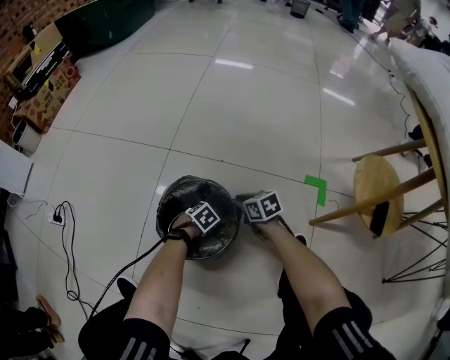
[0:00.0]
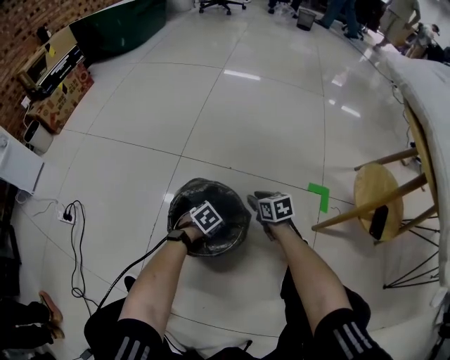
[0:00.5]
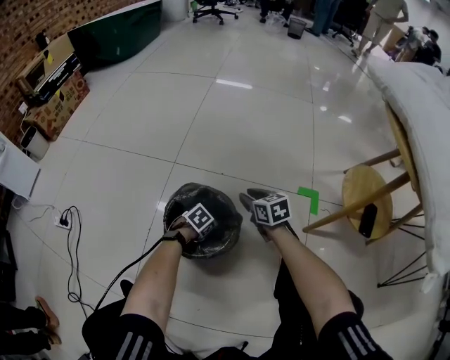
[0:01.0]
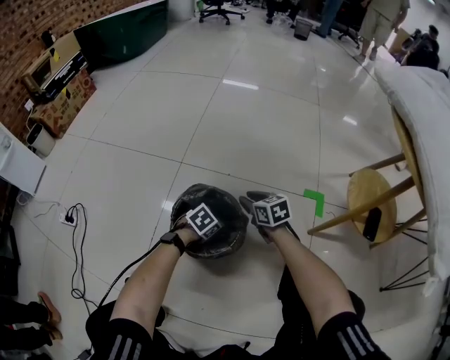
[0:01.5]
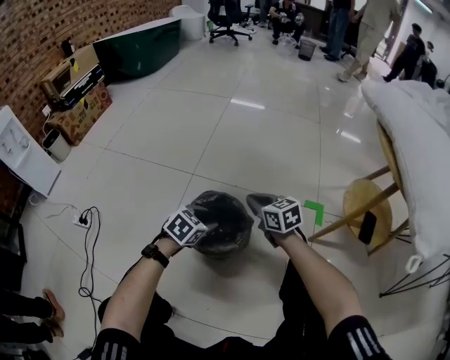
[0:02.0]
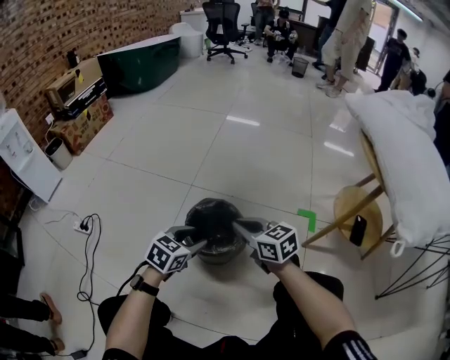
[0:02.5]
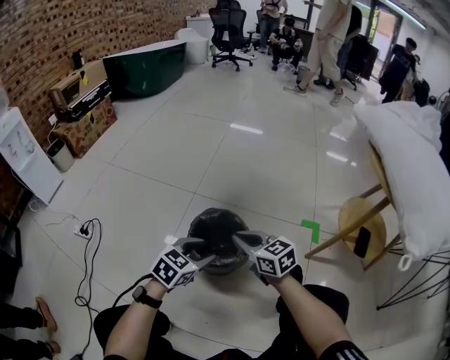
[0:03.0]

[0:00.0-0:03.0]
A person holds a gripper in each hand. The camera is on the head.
0:00.0 to 0:01.5: The grippers both shift upward by some 10 cm.
0:01.5 to 0:03.0: Both grippers move upward, approximately 20 cm. The right gripper rotates roughly 20 degrees, and closes its fingers, while the left gripper swivels approximately 40 degrees.

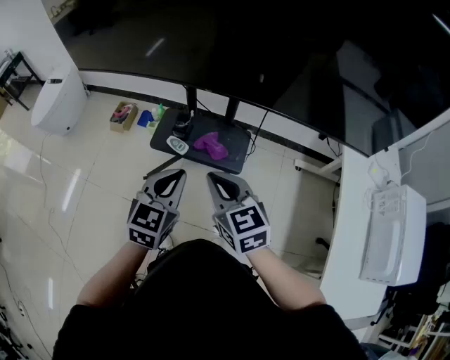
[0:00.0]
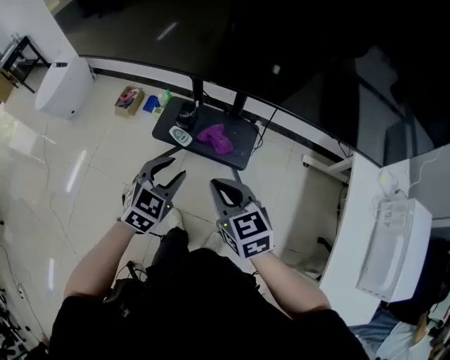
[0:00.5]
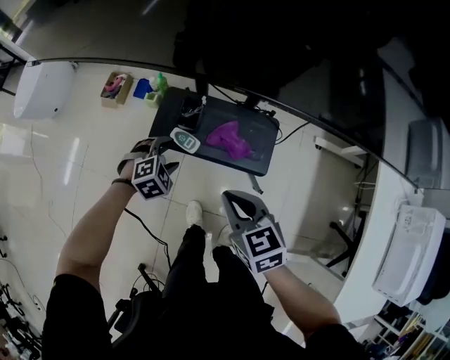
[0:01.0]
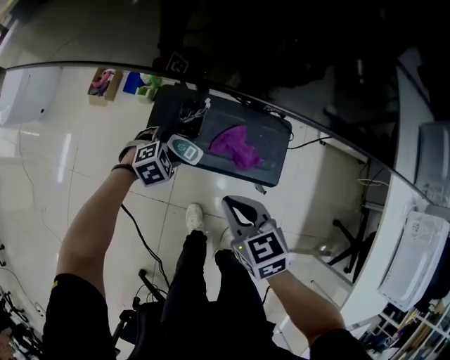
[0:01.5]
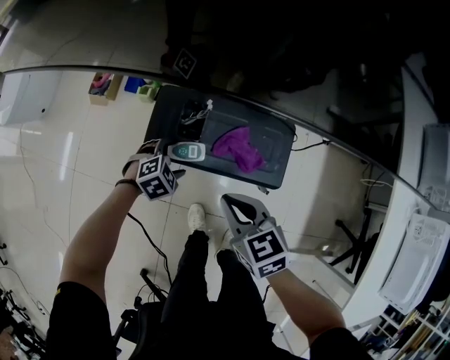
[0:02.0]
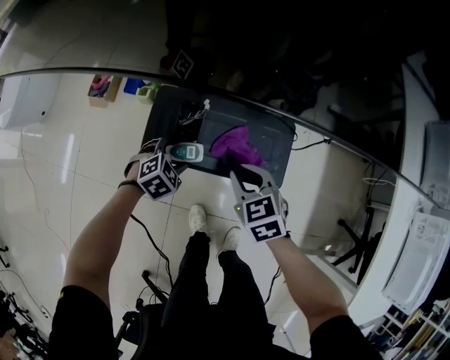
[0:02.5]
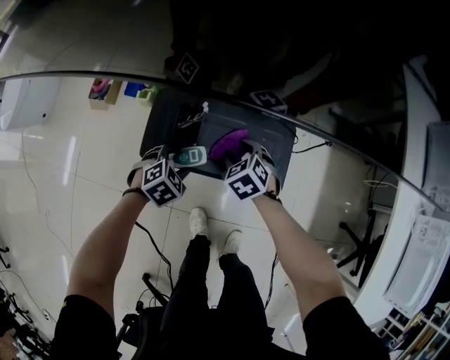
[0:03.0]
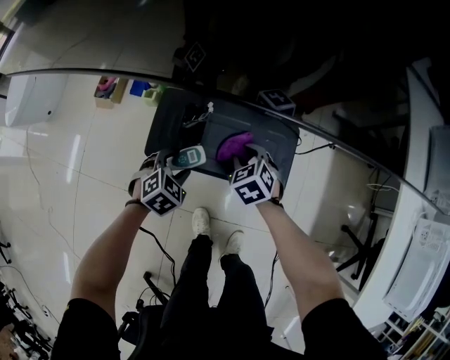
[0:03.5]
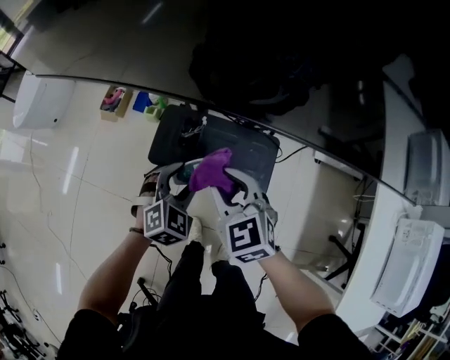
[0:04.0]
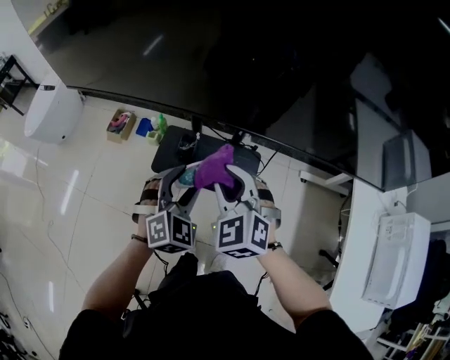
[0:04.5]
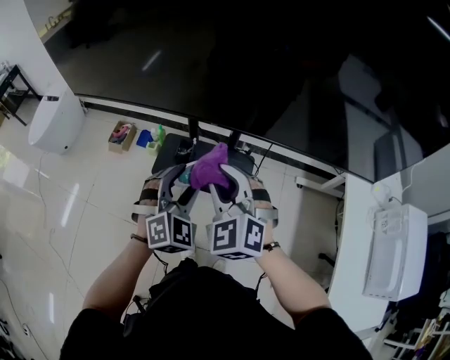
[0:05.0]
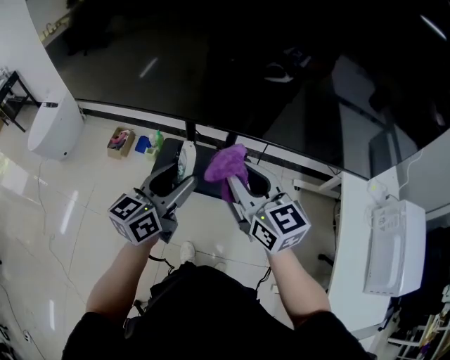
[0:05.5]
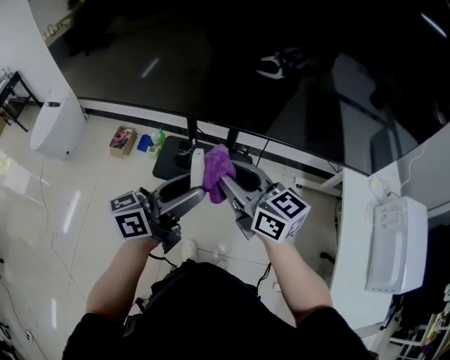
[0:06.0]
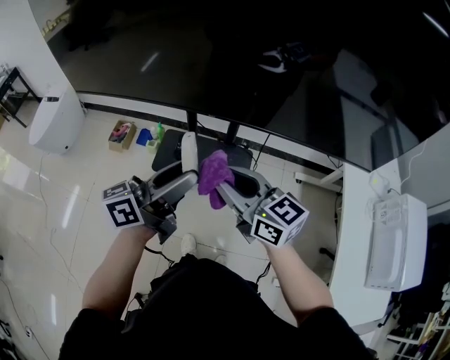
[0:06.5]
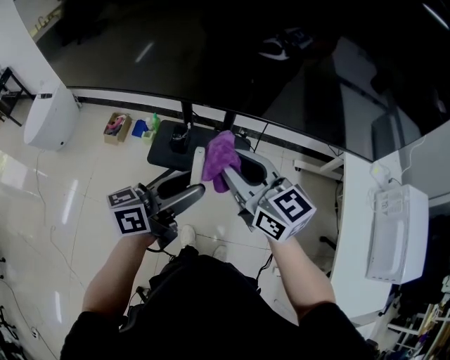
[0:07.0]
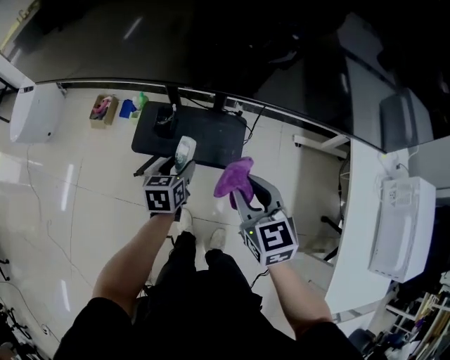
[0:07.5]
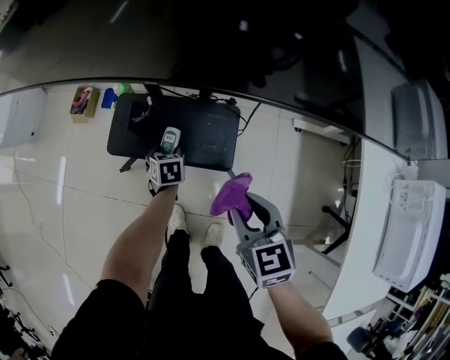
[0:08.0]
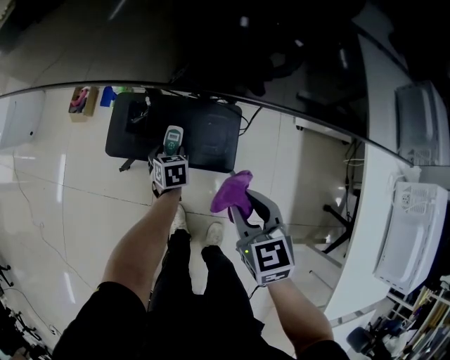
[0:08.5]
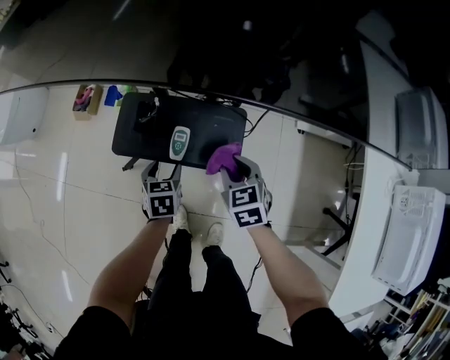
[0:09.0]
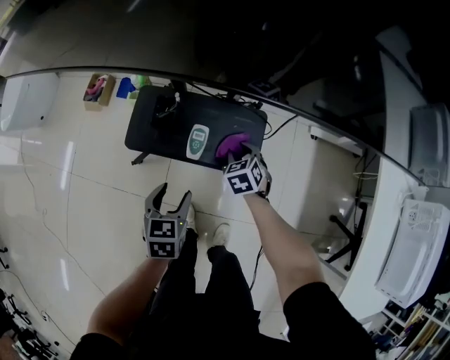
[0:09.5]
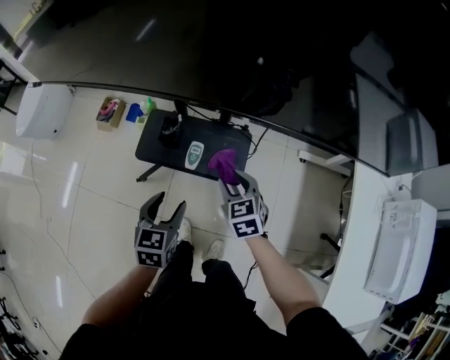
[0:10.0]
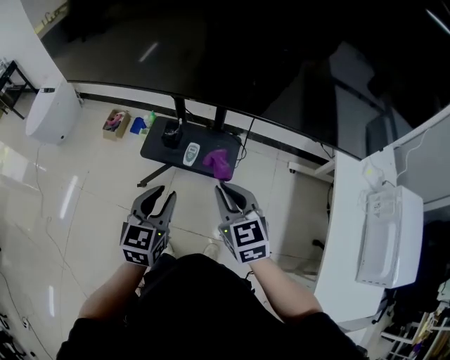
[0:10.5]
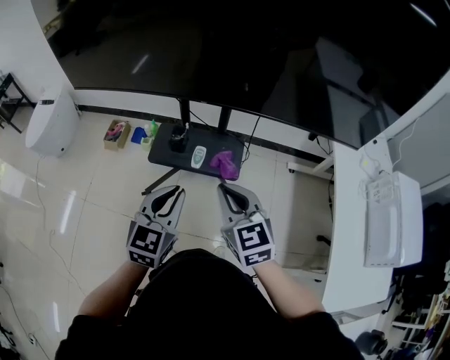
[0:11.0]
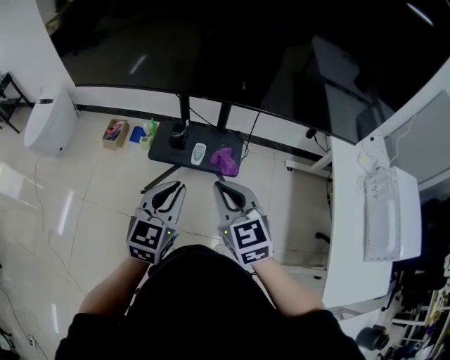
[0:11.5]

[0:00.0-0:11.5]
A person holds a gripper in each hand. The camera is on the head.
0:00.0 to 0:02.0: The left gripper shifts about 50 cm downward and forward, angles its fingers downward, by about 40 degrees, and opens up. The right gripper shifts approximately 30 cm downward and forward, and turns by approximately 20 degrees.
0:02.0 to 0:04.0: The right gripper moves upward, roughly 10 cm, turns by roughly 30 degrees, and opens up. The left gripper goes about 20 cm upward, turns by some 30 degrees, and closes up.
0:04.0 to 0:06.0: Both grippers move upward and backward, some 30 cm. The right gripper swivels approximately 40 degrees. The left gripper angles its fingers upward, by approximately 50 degrees.
0:06.0 to 0:07.5: The left gripper heads downward, covering approximately 30 cm, and tips its fingers downward by roughly 50 degrees; the right gripper is displaced downward and to the right by about 20 cm, and rotates some 30 degrees.
0:07.5 to 0:09.5: The left gripper moves downward, some 10 cm. Meanwhile the right gripper travels downward and forward by about 35 cm, and angles its fingers downward, by about 30 degrees.
0:09.5 to 0:11.5: Both grippers travel together upward and backward, about 40 cm. The right gripper tilts its fingers some 40 degrees upward, and closes. Meanwhile the left gripper tilts its fingers about 30 degrees upward, and closes up.

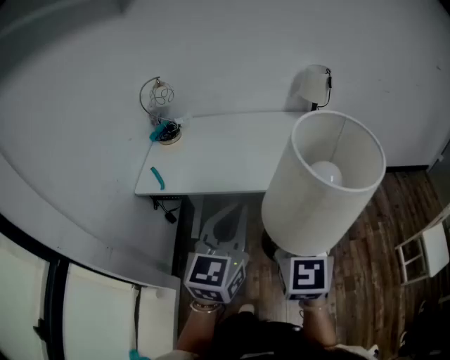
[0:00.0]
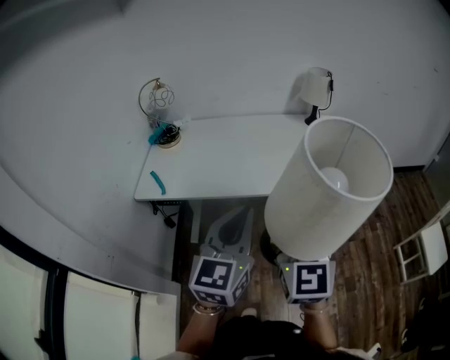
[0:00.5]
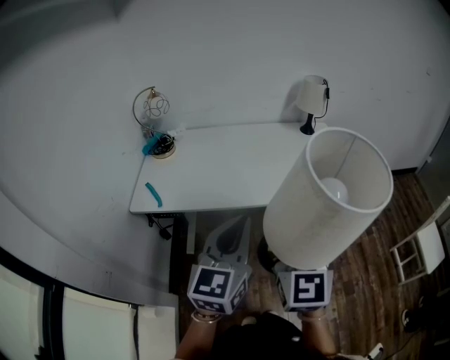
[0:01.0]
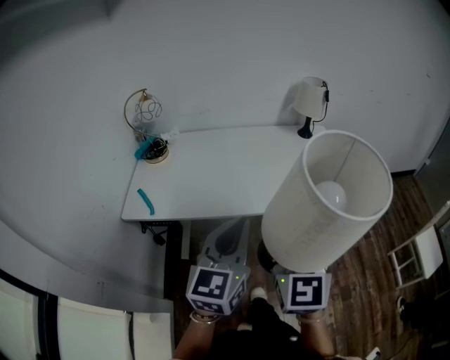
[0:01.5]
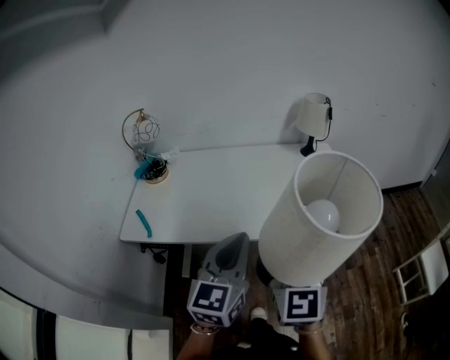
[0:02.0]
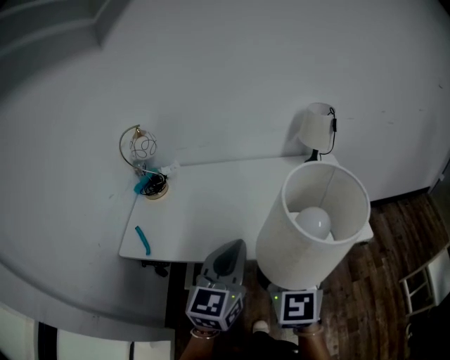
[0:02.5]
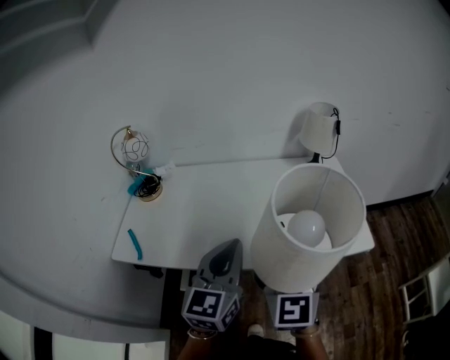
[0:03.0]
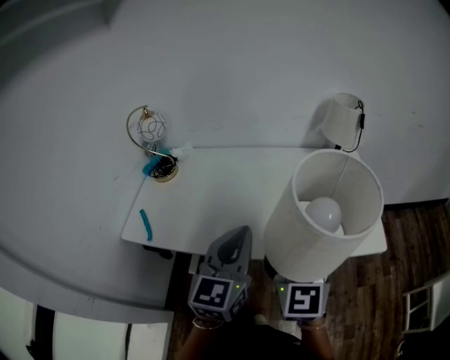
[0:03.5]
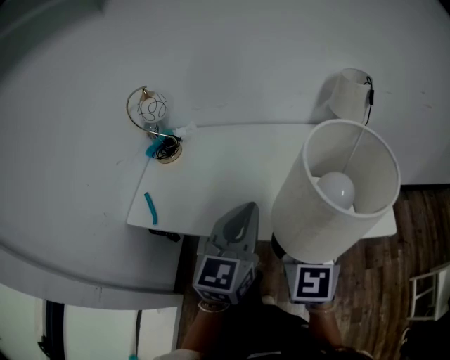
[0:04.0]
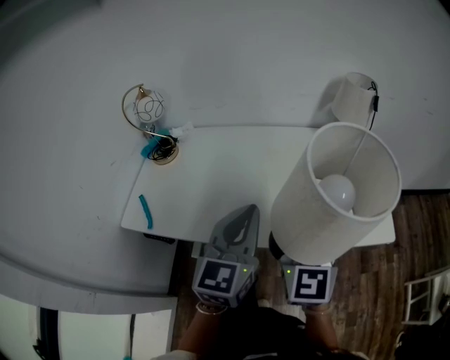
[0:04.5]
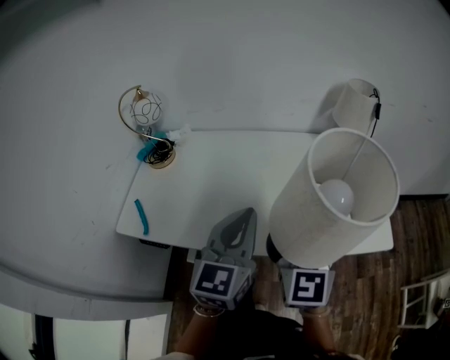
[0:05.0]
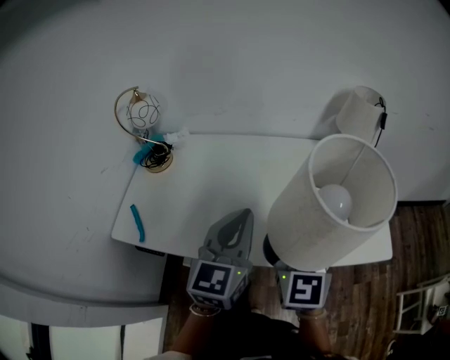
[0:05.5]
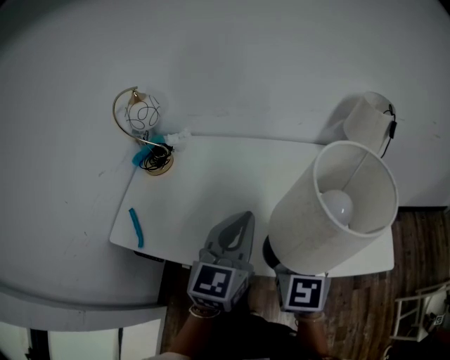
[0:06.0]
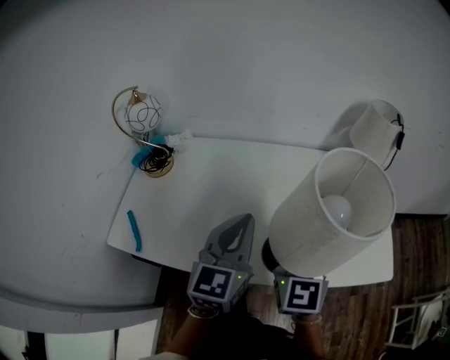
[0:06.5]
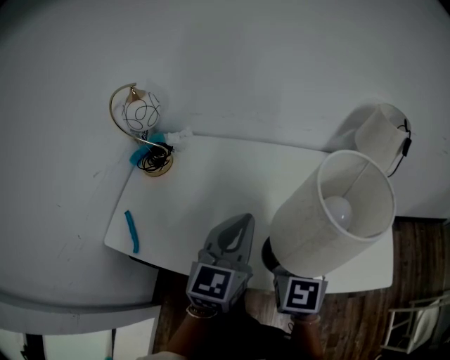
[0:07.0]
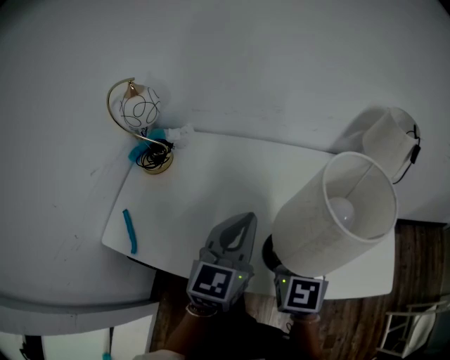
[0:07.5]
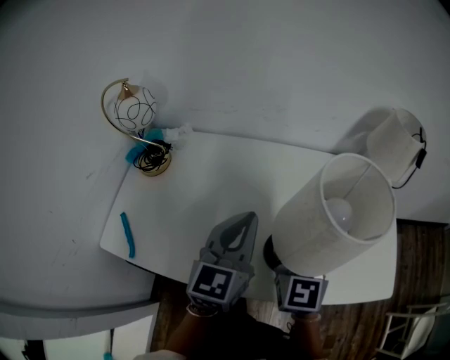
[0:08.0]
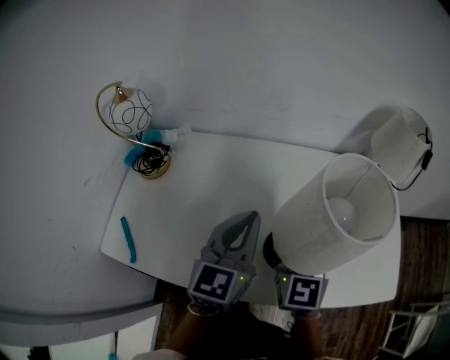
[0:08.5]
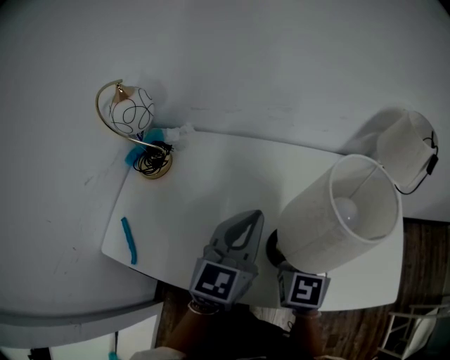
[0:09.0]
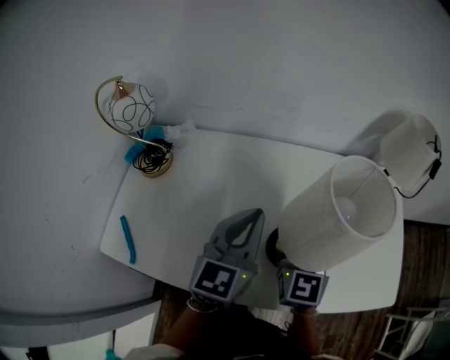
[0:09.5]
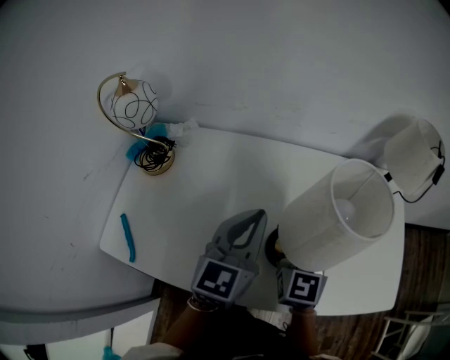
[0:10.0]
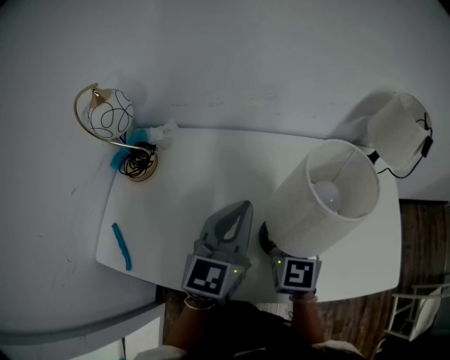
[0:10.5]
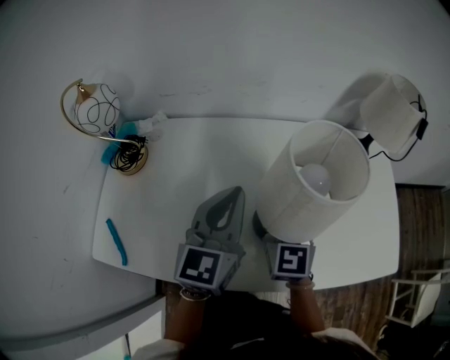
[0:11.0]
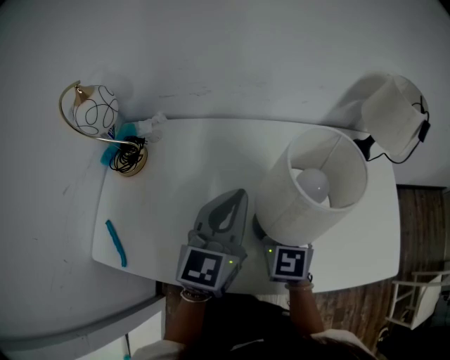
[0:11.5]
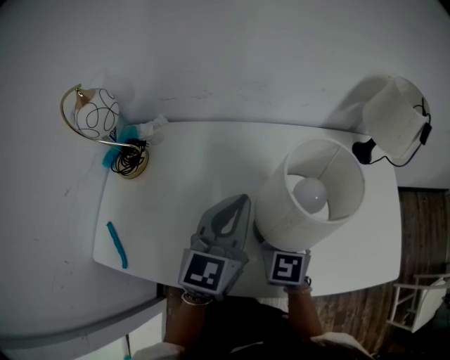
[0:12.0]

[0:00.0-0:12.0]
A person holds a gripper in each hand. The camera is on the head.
0:00.0 to 0:02.0: The two grippers go roughly 10 cm forward.
0:02.0 to 0:04.0: Both grippers move forward, approximately 15 cm.
0:04.0 to 0:06.0: The two grippers go about 10 cm forward.
0:06.0 to 0:08.0: The right gripper moves forward and downward, some 10 cm. The left gripper travels forward by about 10 cm.
0:08.0 to 0:10.0: The left gripper changes place by about 5 cm, while the right gripper travels forward by about 5 cm.
0:10.0 to 0:12.0: The grippers make only small movements.
